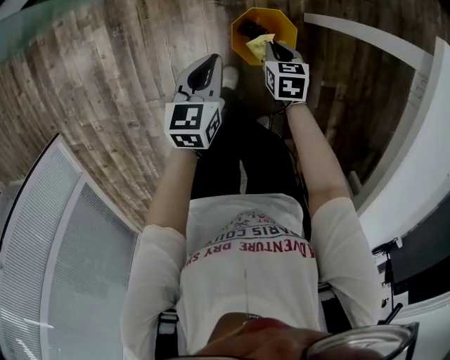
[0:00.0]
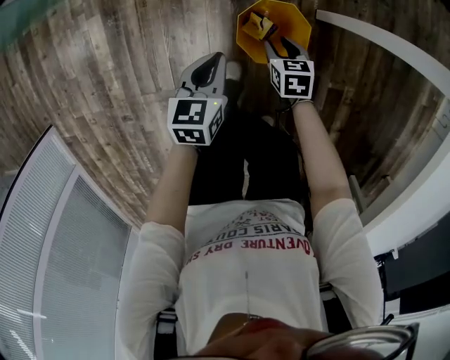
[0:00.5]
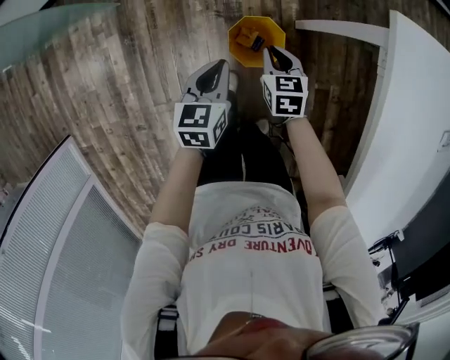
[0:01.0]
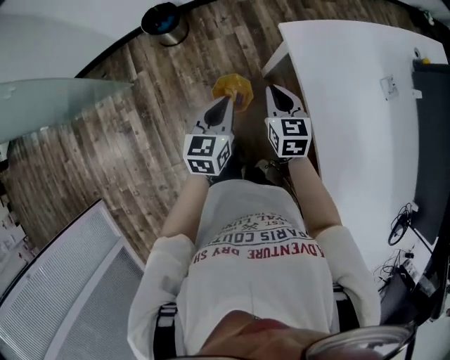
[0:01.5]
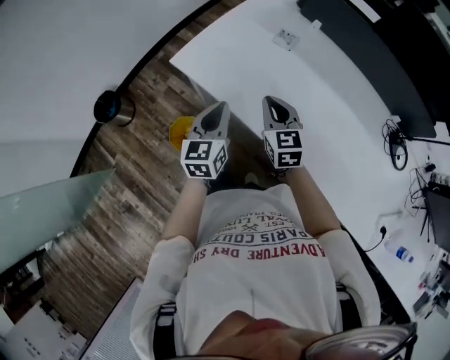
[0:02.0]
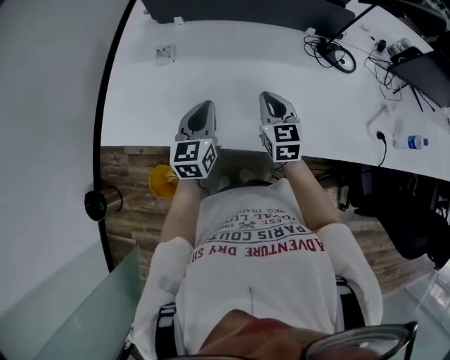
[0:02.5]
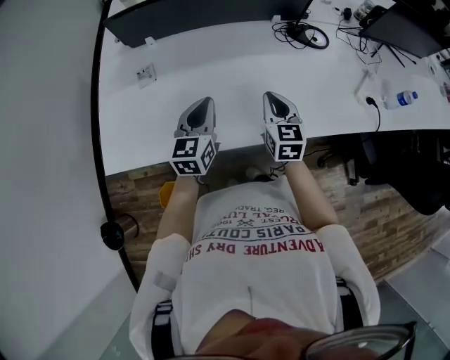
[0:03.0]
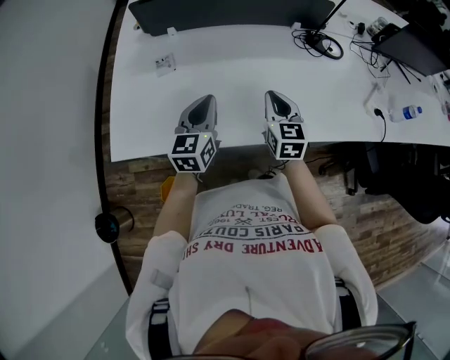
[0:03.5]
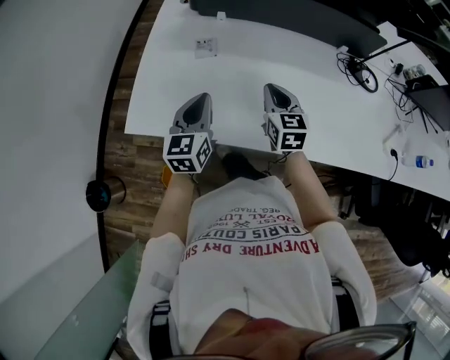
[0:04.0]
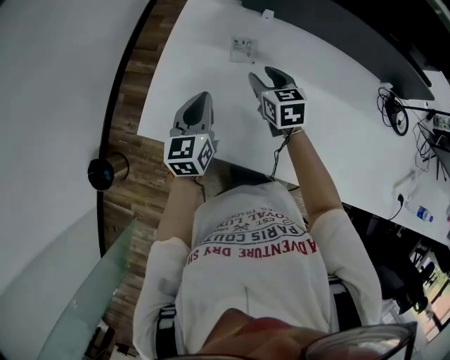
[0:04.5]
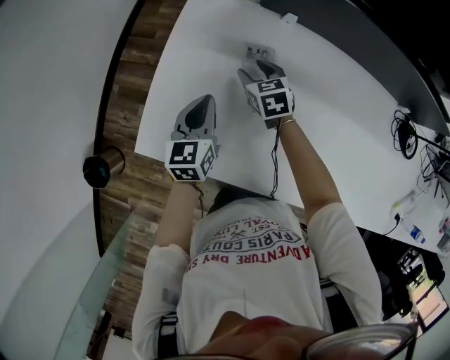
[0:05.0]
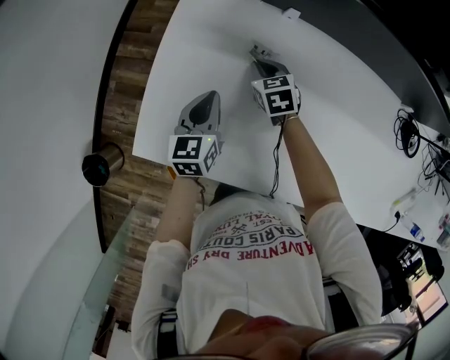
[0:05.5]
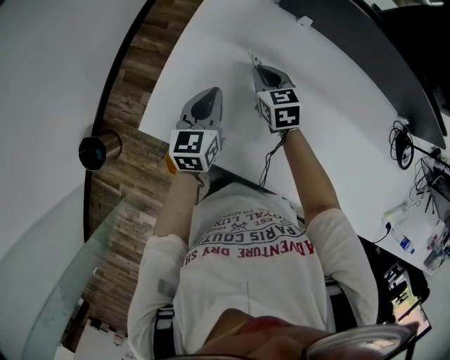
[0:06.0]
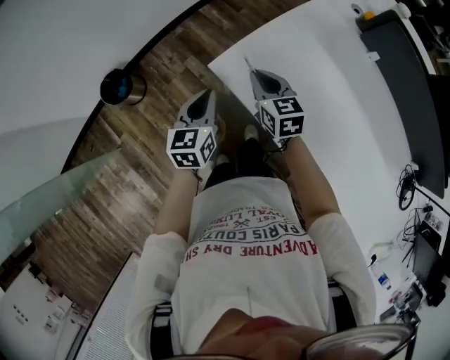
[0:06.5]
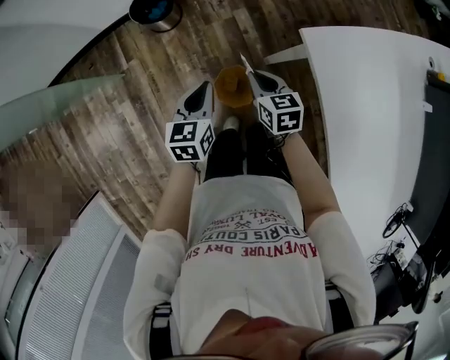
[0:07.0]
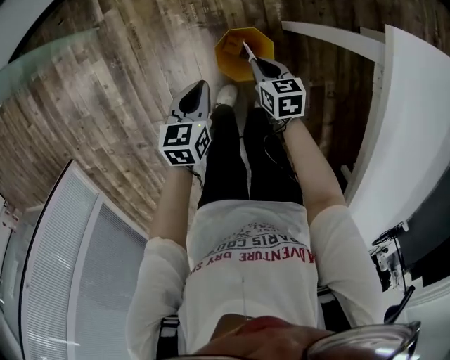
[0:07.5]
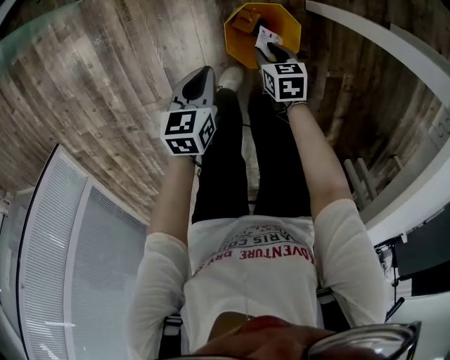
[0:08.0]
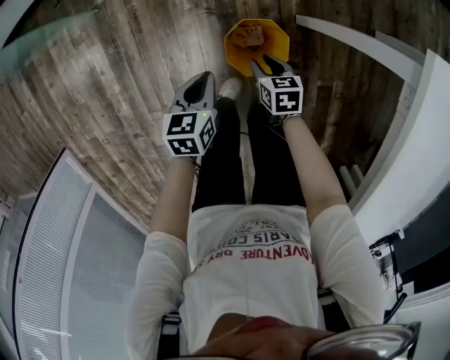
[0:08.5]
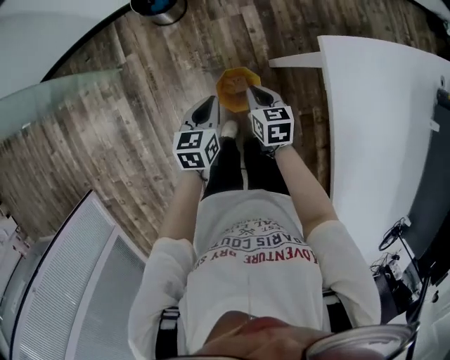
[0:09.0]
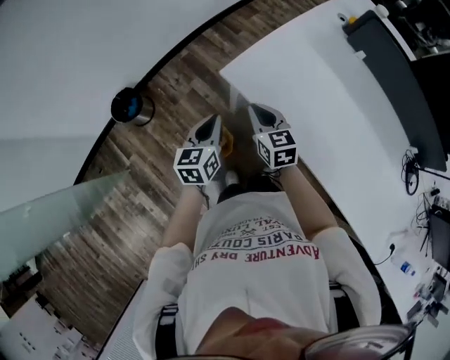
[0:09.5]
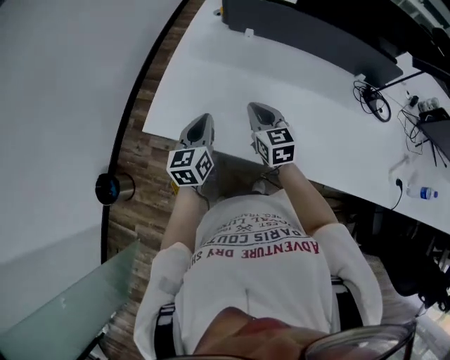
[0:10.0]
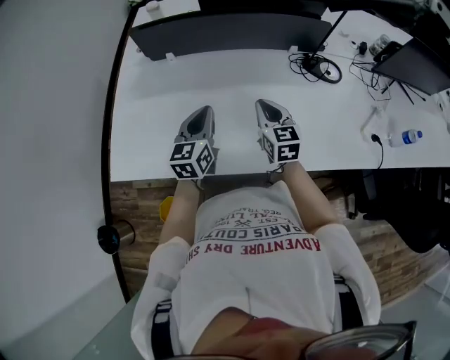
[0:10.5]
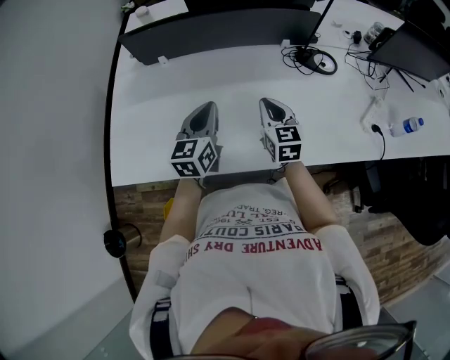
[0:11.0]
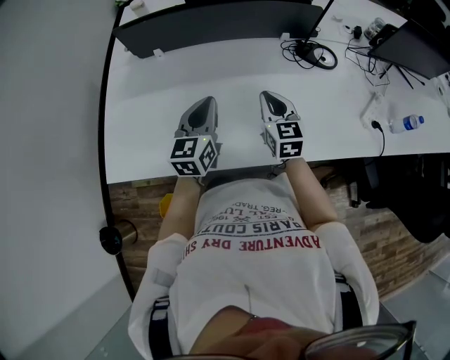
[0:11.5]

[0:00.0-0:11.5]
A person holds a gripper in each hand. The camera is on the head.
0:00.0 to 0:02.0: Both grippers travel together upward, roughly 50 cm. The right gripper tips its fingers upward by approximately 40 degrees, and opens and closes again; the left gripper rotates roughly 50 degrees.
0:02.0 to 0:04.0: The right gripper rotates about 40 degrees. Meanwhile the left gripper swivels some 30 degrees.
0:04.0 to 0:06.0: The left gripper is displaced forward, downward and to the left by some 25 cm. The right gripper travels forward, to the left and downward by roughly 35 cm, swivels some 30 degrees, and opens, then closes again.
0:06.0 to 0:07.5: Both grippers are carried about 60 cm. The left gripper swivels roughly 60 degrees, while the right gripper turns by approximately 60 degrees.
0:07.5 to 0:09.5: Both grippers travel together upward, roughly 40 cm. The right gripper swivels approximately 40 degrees, and opens, then closes again; the left gripper turns by roughly 40 degrees.
0:09.5 to 0:11.5: The two grippers travel together, roughly 60 cm. The left gripper rotates some 50 degrees. Meanwhile the right gripper rotates about 60 degrees.

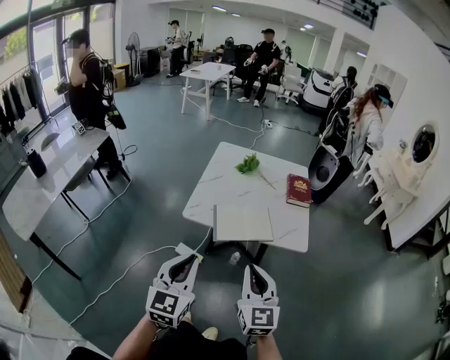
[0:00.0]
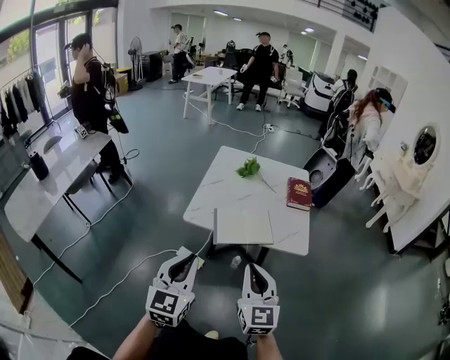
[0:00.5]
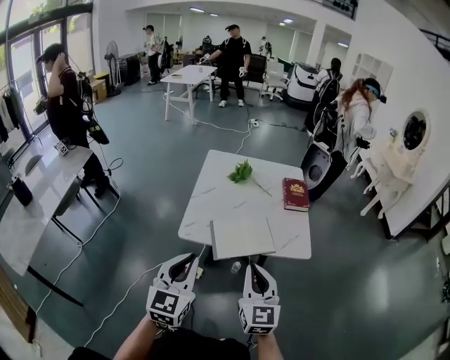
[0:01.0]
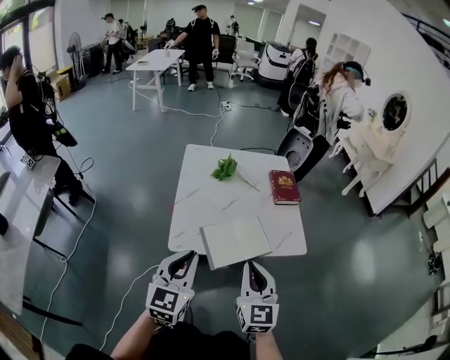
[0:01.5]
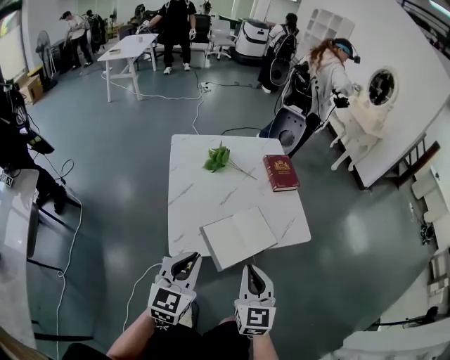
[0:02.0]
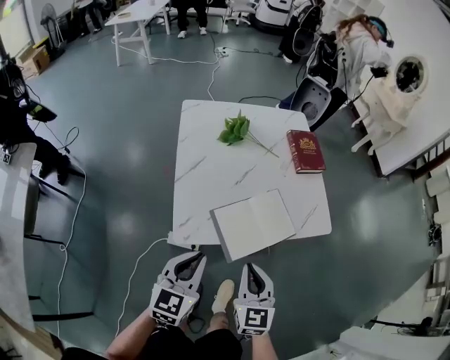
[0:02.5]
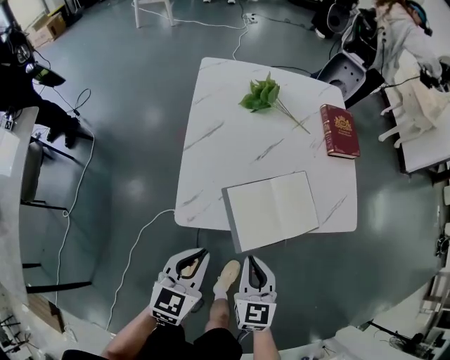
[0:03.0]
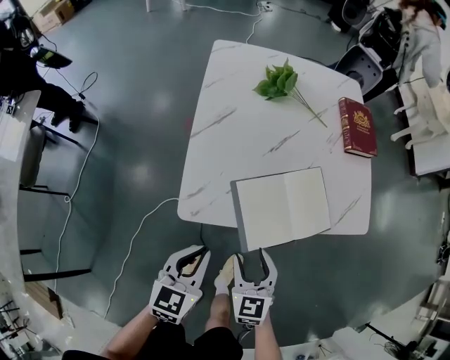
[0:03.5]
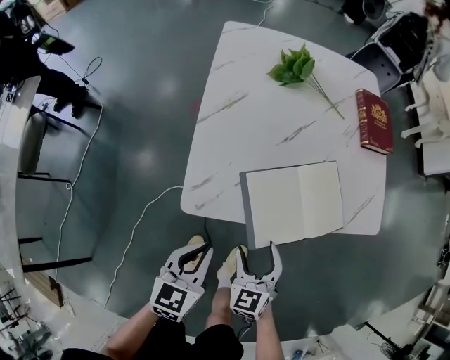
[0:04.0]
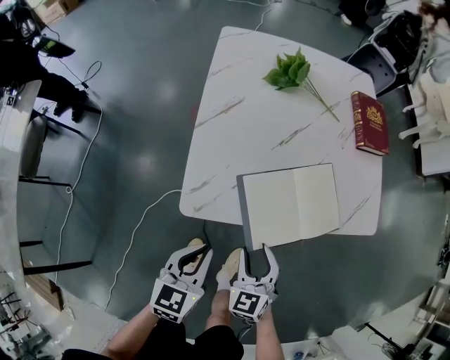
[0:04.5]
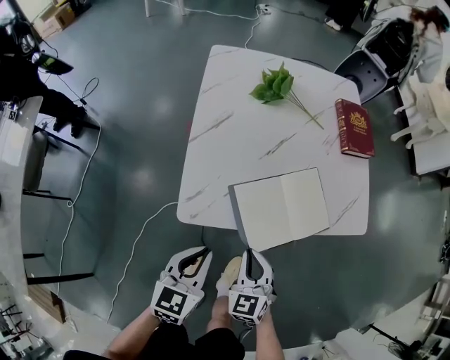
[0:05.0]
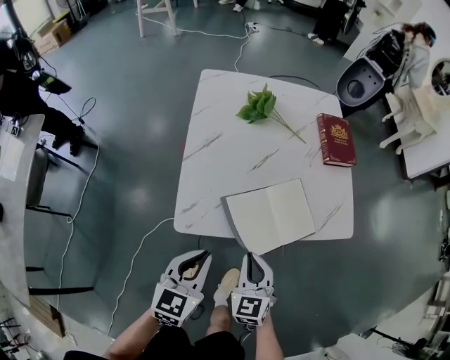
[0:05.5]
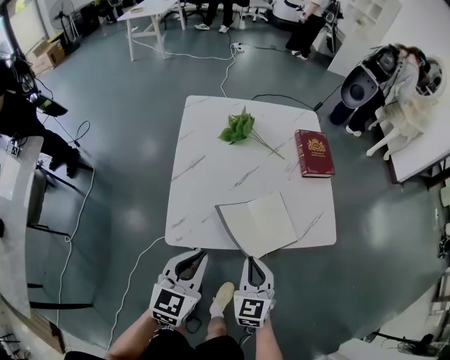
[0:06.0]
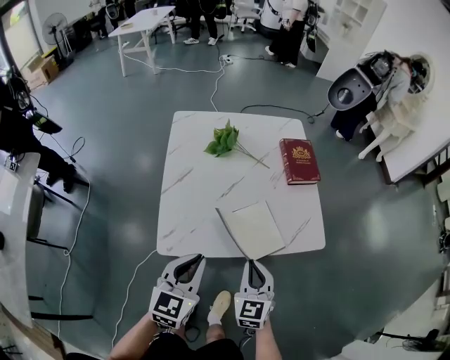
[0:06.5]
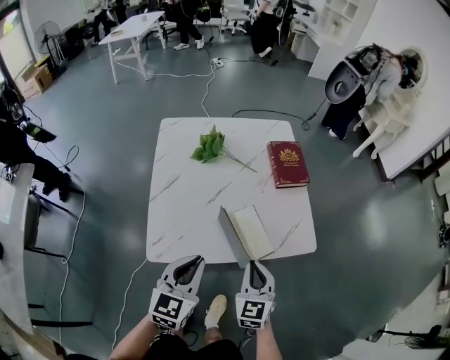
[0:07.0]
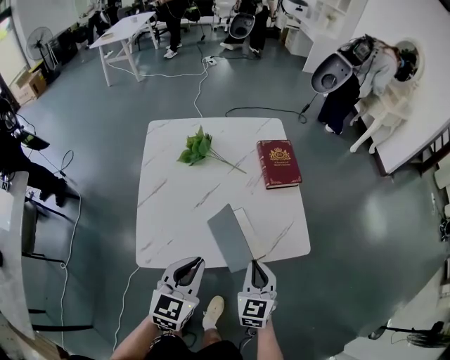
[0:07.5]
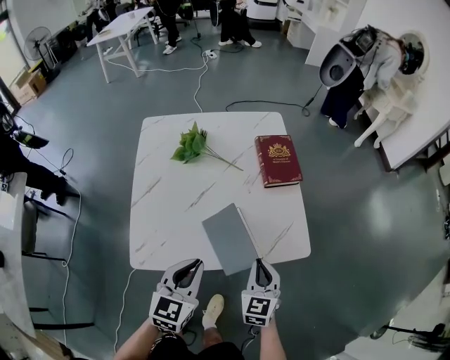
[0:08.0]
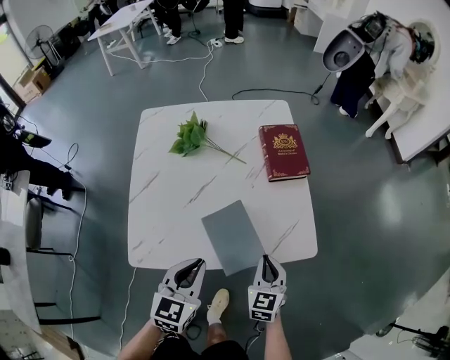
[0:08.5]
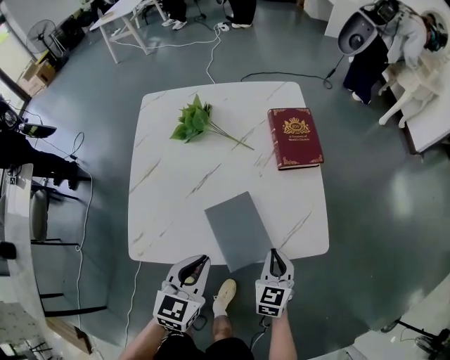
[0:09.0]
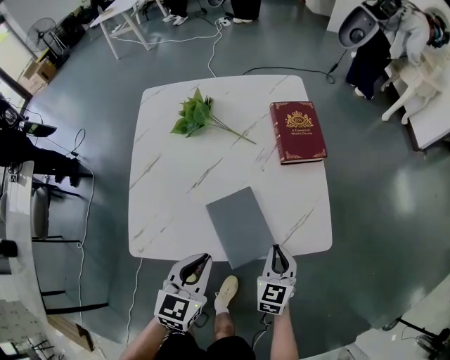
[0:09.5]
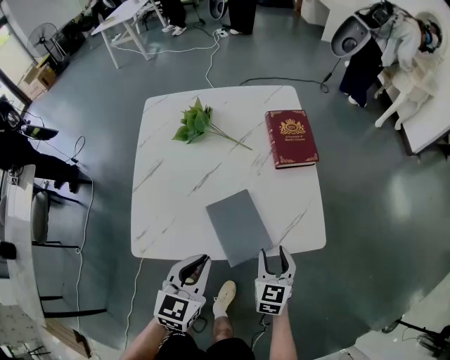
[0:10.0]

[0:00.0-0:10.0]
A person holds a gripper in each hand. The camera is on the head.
0:00.0 to 0:02.0: The left gripper shifts by roughly 30 cm, and rotates approximately 30 degrees; the right gripper ends up approximately 25 cm from where it was, and changes its angle by roughly 30 degrees.
0:02.0 to 0:04.0: The two grippers go about 30 cm downward. The left gripper swivels some 20 degrees. Meanwhile the right gripper changes its angle by roughly 30 degrees, and opens.
0:04.0 to 0:06.0: The right gripper shifts approximately 15 cm upward and to the right, and closes its fingers. Meanwhile the left gripper shifts some 15 cm upward.
0:06.0 to 0:08.0: The two grippers go about 20 cm to the right and forward.
0:08.0 to 0:10.0: The right gripper goes about 10 cm downward, and opens its fingers. The left gripper moves downward, some 5 cm.

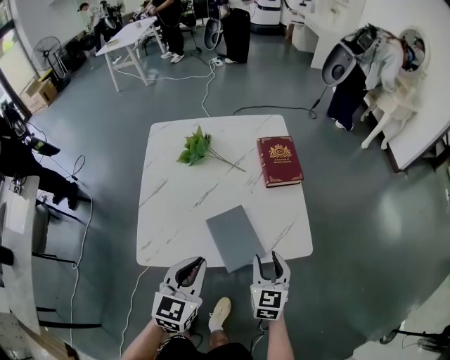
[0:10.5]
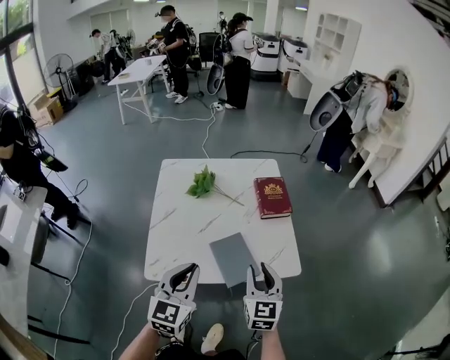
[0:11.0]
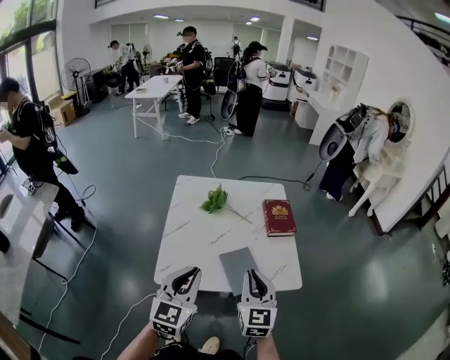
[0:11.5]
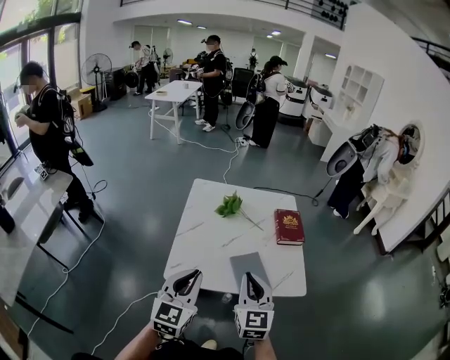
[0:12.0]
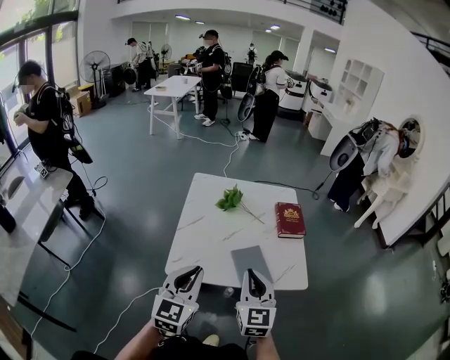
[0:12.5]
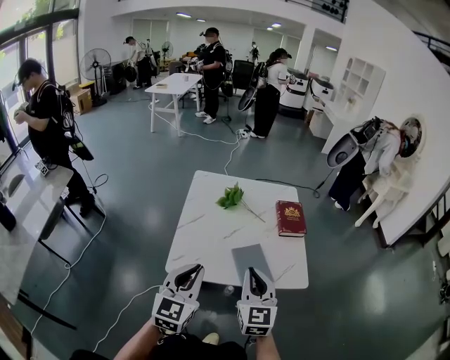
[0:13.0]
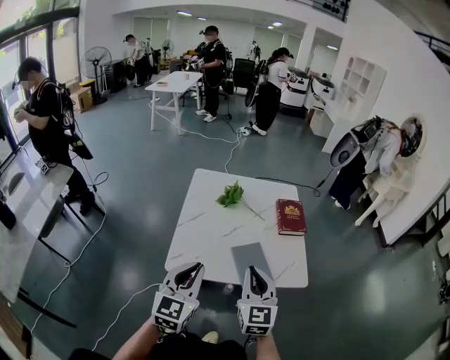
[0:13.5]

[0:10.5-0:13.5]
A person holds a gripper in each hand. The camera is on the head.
0:10.5 to 0:12.0: The right gripper goes roughly 30 cm upward, to the left and backward, swivels roughly 20 degrees, and closes up; the left gripper heads upward, backward and to the left, covering some 25 cm.
0:12.0 to 0:13.5: Both grippers stay put.

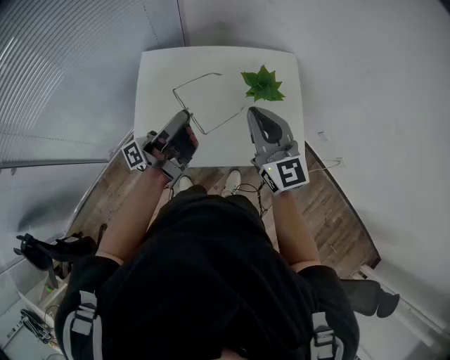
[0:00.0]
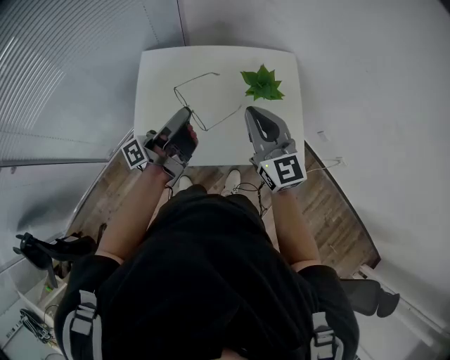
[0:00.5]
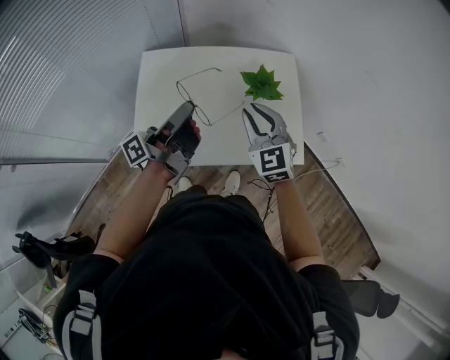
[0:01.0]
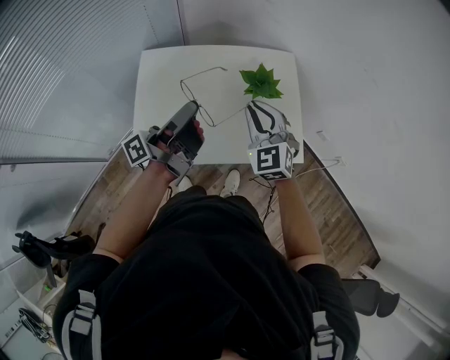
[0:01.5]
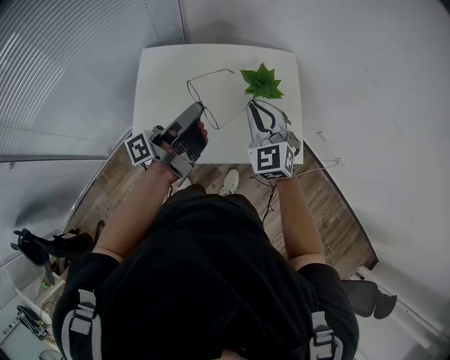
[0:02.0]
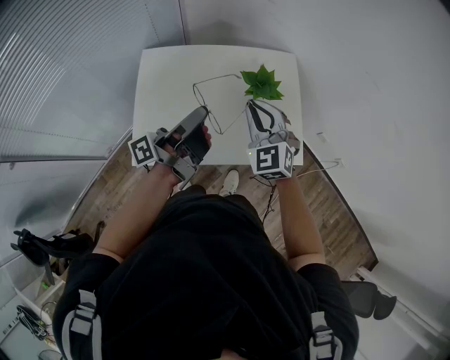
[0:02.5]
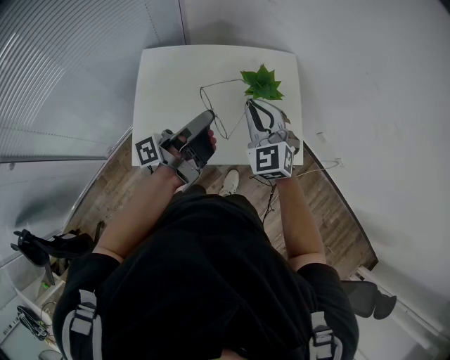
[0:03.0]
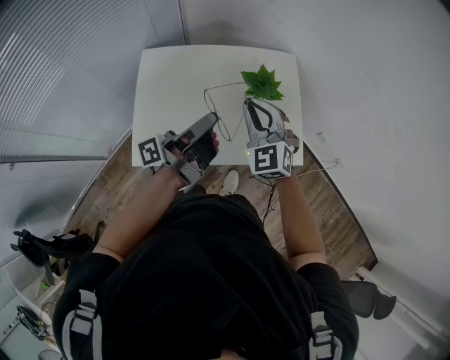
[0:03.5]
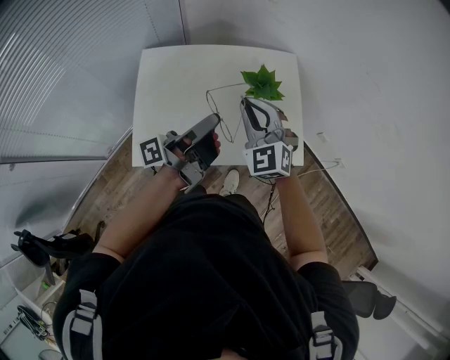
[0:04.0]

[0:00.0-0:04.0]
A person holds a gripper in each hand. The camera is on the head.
0:00.0 to 0:02.0: The right gripper travels downward by some 5 cm, and swivels roughly 30 degrees.
